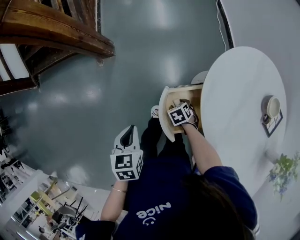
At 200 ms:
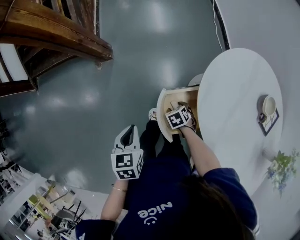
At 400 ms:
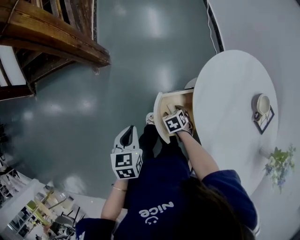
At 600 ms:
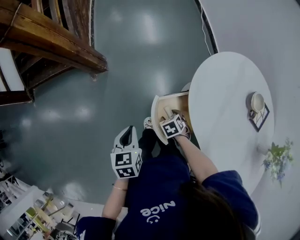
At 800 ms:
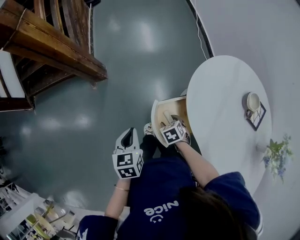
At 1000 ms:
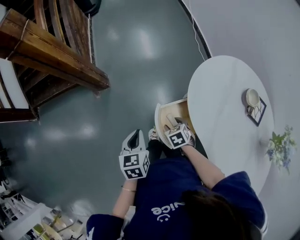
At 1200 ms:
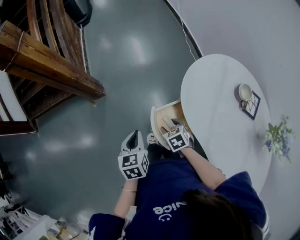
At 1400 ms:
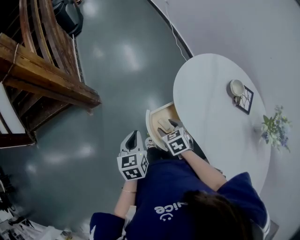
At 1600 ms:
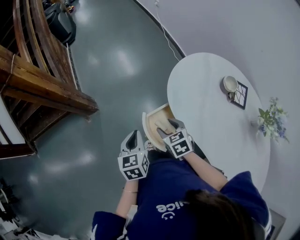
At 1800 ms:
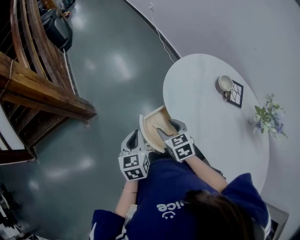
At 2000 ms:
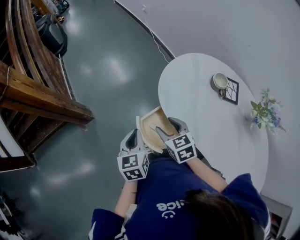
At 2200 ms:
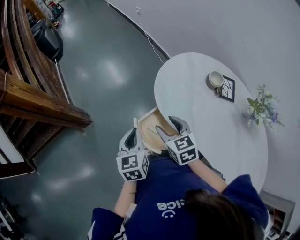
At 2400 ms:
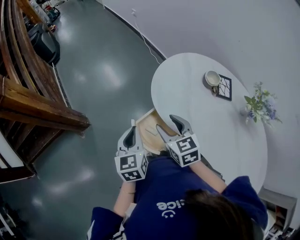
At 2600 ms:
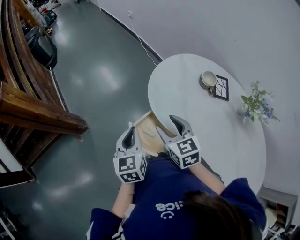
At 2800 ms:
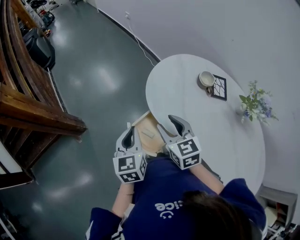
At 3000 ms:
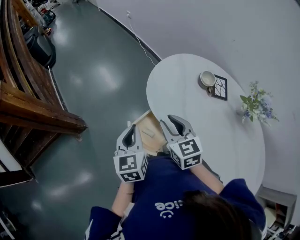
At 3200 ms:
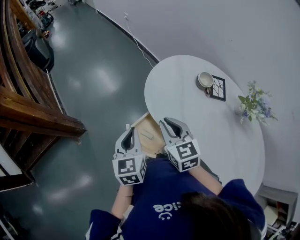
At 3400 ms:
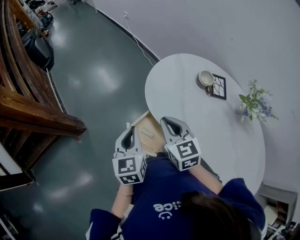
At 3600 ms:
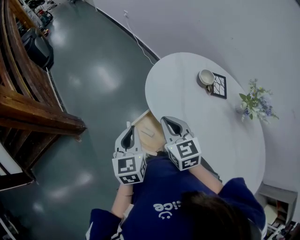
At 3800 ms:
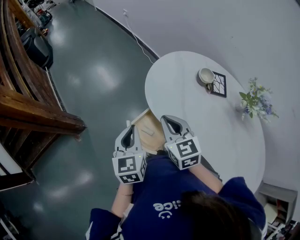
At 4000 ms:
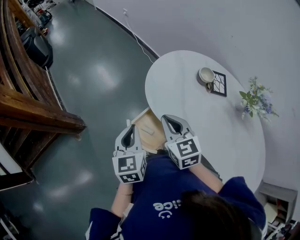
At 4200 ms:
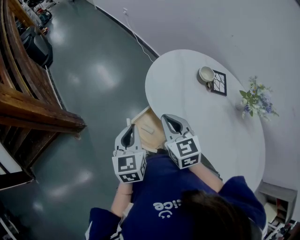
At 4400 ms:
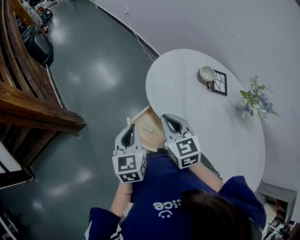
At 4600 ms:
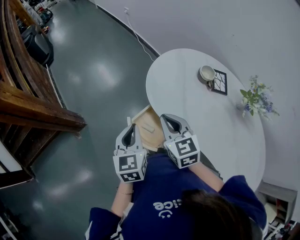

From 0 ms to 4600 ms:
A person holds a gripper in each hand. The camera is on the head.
From 0 ms to 1600 ms: The right gripper is displaced upward by about 25 cm, and rotates roughly 30 degrees. The left gripper moves roughly 10 cm, and rotates roughly 20 degrees.
From 1600 ms to 3000 ms: The left gripper is displaced to the right and upward by roughly 10 cm; the right gripper travels upward and to the right by roughly 15 cm, swivels some 30 degrees, and closes its fingers.
From 3000 ms to 4600 ms: The right gripper closes up.

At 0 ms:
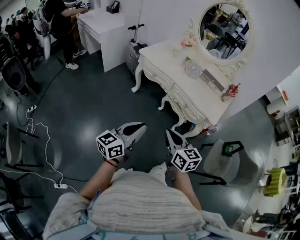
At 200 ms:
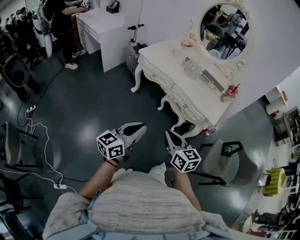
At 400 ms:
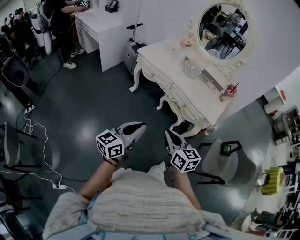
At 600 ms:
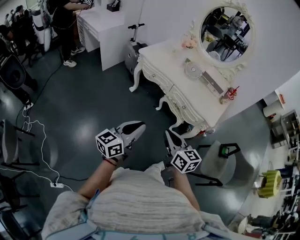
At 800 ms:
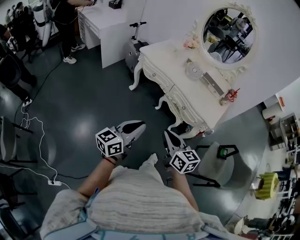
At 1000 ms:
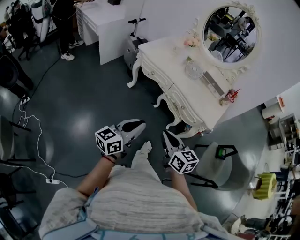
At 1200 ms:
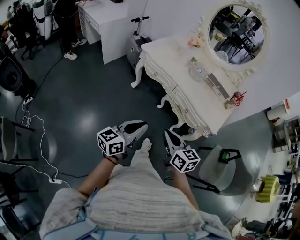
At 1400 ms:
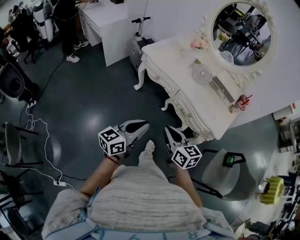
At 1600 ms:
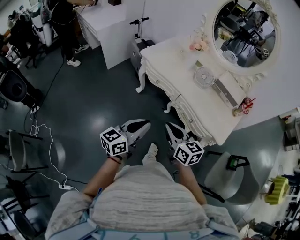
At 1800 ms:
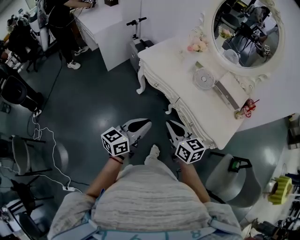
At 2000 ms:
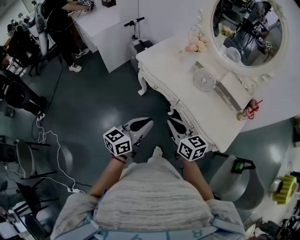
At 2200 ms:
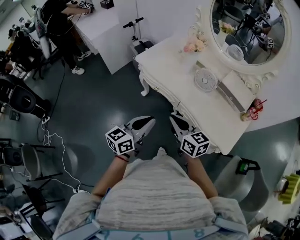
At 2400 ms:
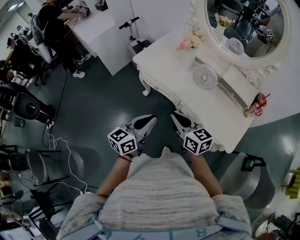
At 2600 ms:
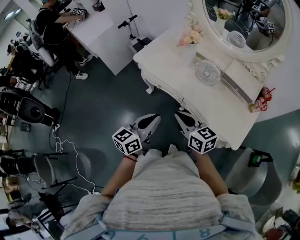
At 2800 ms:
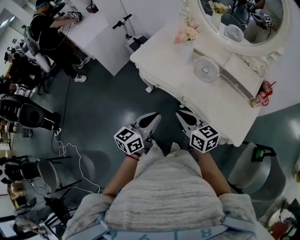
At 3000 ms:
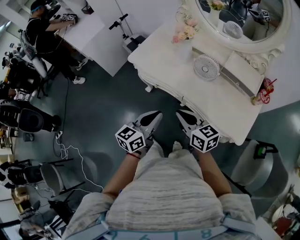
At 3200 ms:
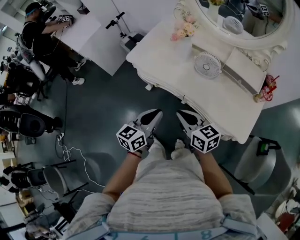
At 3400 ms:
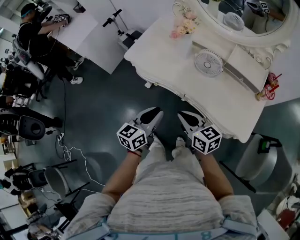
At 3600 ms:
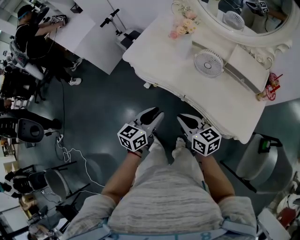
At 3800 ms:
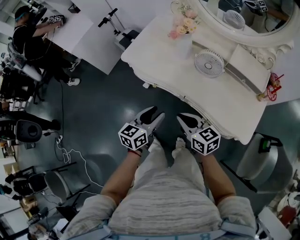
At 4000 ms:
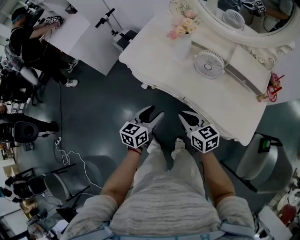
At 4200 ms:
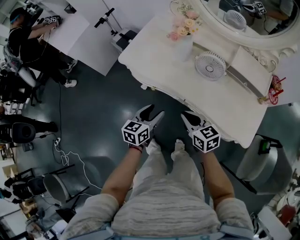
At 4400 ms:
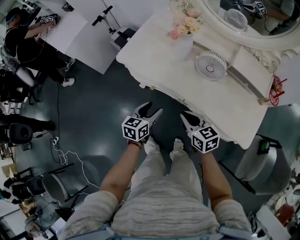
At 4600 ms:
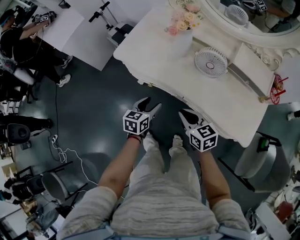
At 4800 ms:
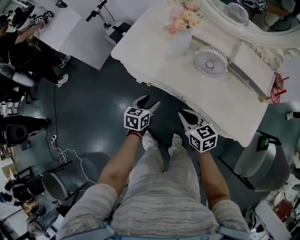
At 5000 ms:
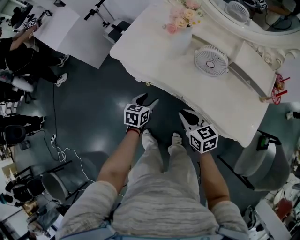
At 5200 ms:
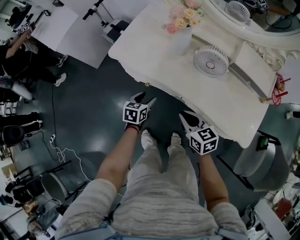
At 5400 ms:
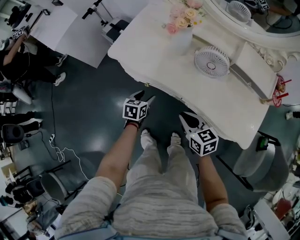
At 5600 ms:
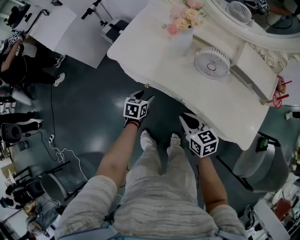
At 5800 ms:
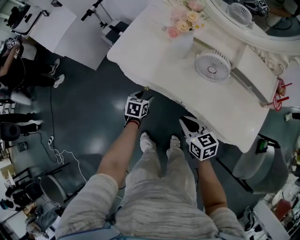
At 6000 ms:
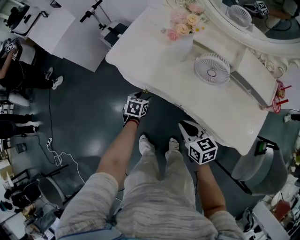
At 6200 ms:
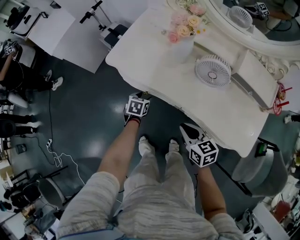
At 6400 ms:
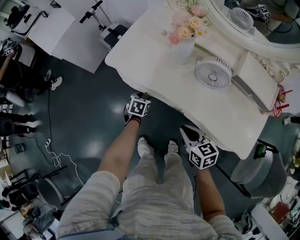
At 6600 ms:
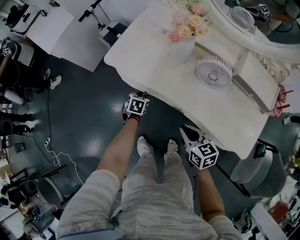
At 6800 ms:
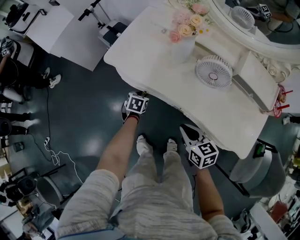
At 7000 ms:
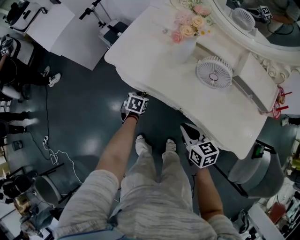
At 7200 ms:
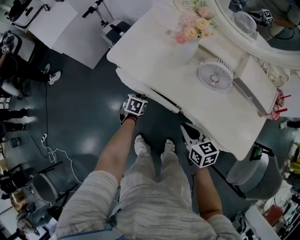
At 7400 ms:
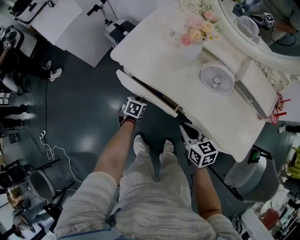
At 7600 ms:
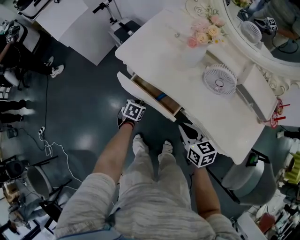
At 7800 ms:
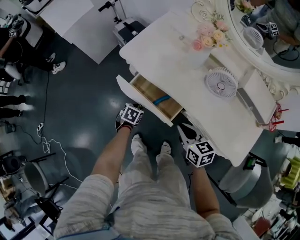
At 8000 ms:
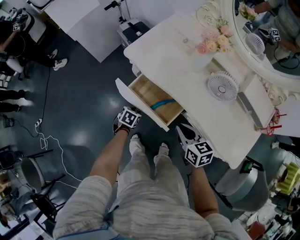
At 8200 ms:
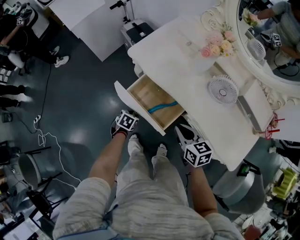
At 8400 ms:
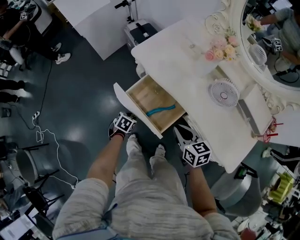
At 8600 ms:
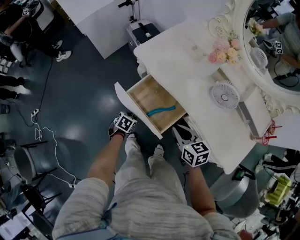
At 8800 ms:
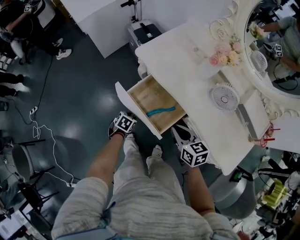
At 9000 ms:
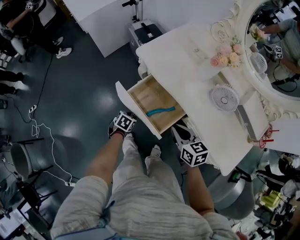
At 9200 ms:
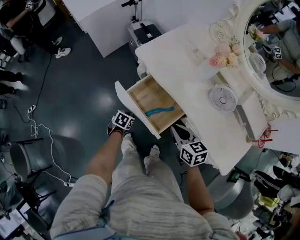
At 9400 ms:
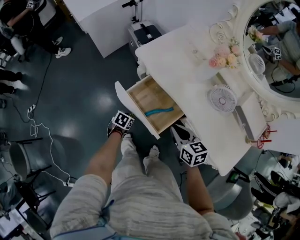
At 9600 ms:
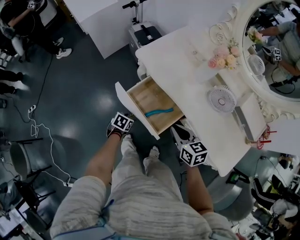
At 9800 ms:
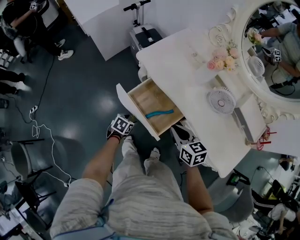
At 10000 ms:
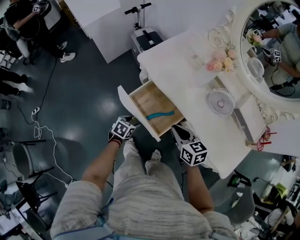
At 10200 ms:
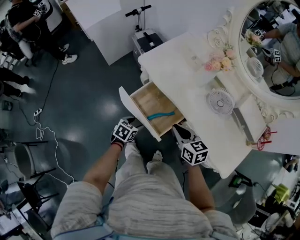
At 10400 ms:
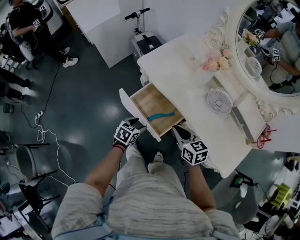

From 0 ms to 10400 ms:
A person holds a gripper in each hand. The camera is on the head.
From 0 ms to 1400 ms: Both grippers move forward, about 15 cm.
From 1400 ms to 3000 ms: Both grippers move forward, approximately 25 cm.
From 3000 ms to 4400 ms: The right gripper heads downward and forward, covering roughly 15 cm. Meanwhile the left gripper heads downward and forward, covering about 20 cm, and opens up.
From 4400 ms to 6000 ms: The left gripper heads downward and forward, covering approximately 20 cm, and changes its angle by approximately 30 degrees.
From 6000 ms to 7400 ms: The left gripper closes its fingers.
From 7400 ms to 9000 ms: The left gripper goes approximately 15 cm backward and to the left. The right gripper is displaced to the left by approximately 10 cm.
From 9000 ms to 10400 ms: The left gripper is displaced upward and to the right by about 15 cm, and opens up.

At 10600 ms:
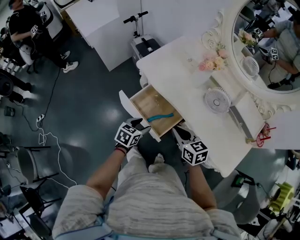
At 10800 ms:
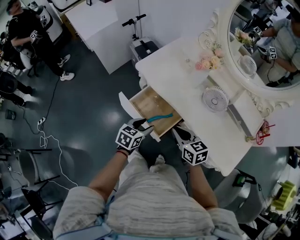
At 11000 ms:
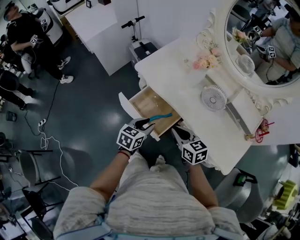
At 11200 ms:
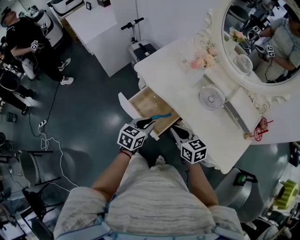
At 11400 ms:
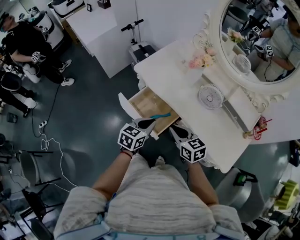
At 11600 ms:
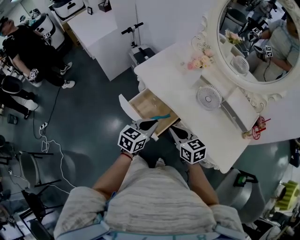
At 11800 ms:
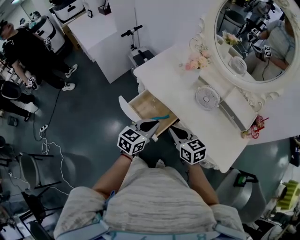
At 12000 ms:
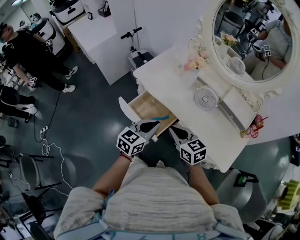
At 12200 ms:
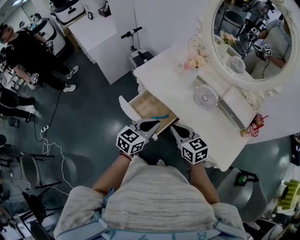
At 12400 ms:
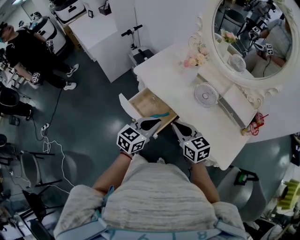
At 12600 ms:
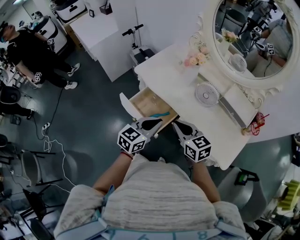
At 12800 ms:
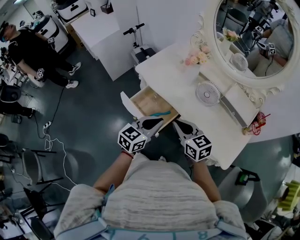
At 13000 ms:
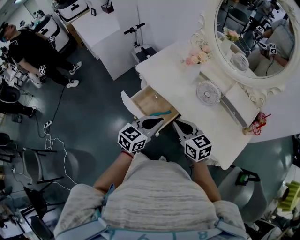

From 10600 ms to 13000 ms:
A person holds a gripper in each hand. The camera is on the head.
From 10600 ms to 11800 ms: The left gripper heads upward and to the right, covering approximately 20 cm, rotates some 20 degrees, and closes; the right gripper travels upward by roughly 5 cm.
From 11800 ms to 13000 ms: The grippers make only small movements.

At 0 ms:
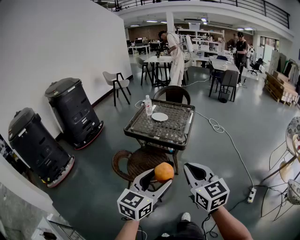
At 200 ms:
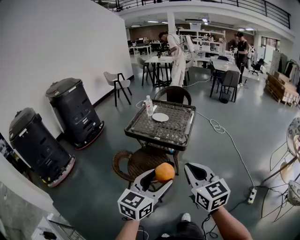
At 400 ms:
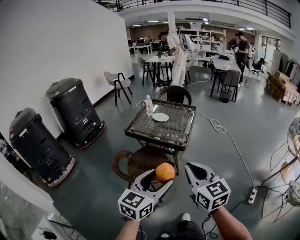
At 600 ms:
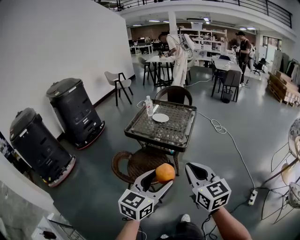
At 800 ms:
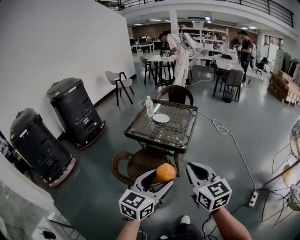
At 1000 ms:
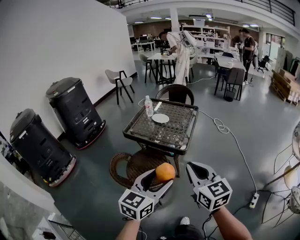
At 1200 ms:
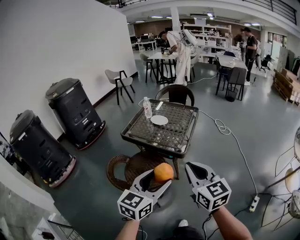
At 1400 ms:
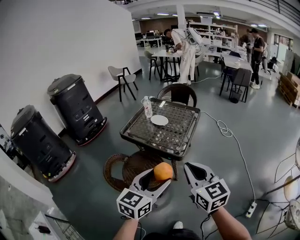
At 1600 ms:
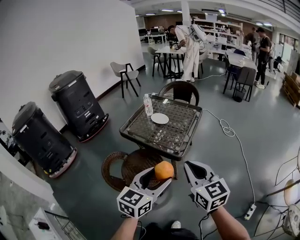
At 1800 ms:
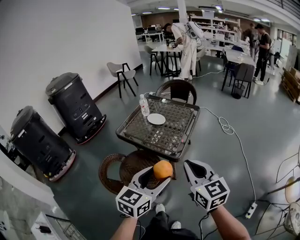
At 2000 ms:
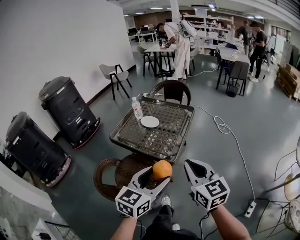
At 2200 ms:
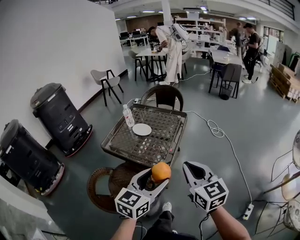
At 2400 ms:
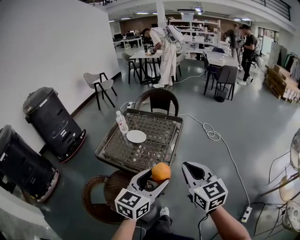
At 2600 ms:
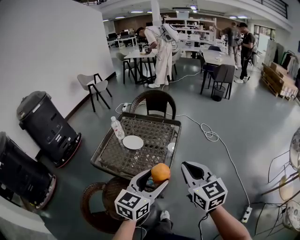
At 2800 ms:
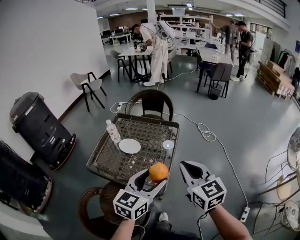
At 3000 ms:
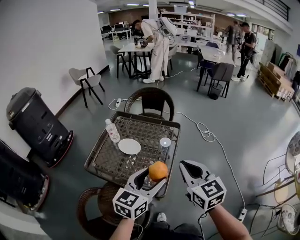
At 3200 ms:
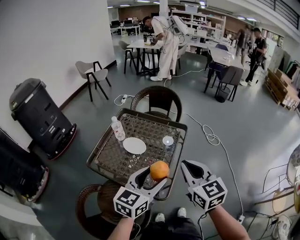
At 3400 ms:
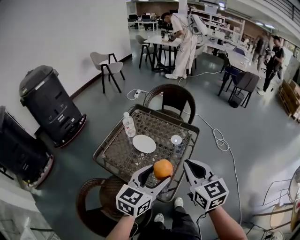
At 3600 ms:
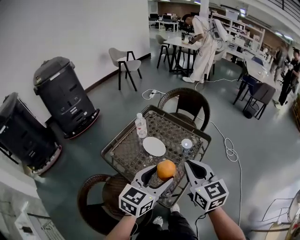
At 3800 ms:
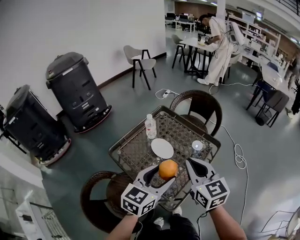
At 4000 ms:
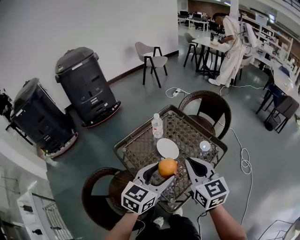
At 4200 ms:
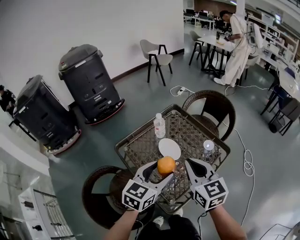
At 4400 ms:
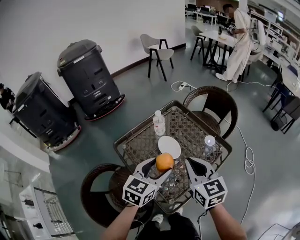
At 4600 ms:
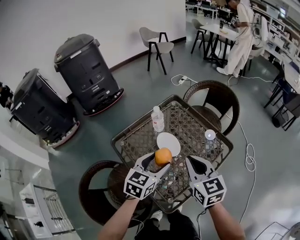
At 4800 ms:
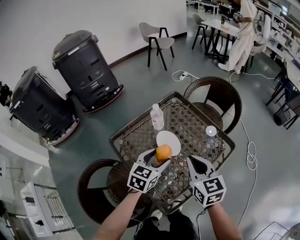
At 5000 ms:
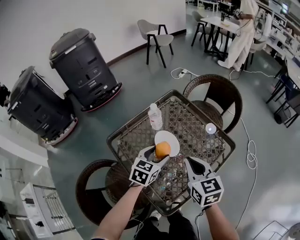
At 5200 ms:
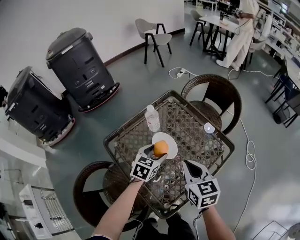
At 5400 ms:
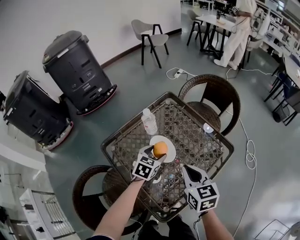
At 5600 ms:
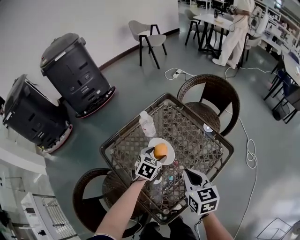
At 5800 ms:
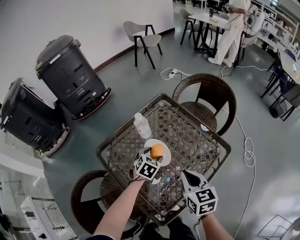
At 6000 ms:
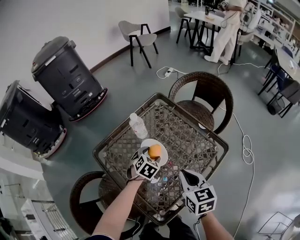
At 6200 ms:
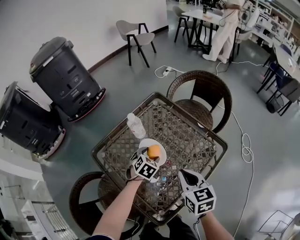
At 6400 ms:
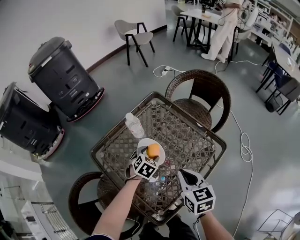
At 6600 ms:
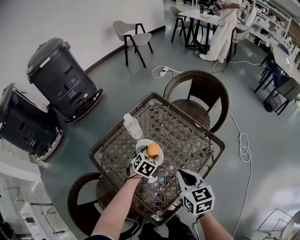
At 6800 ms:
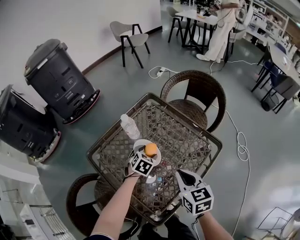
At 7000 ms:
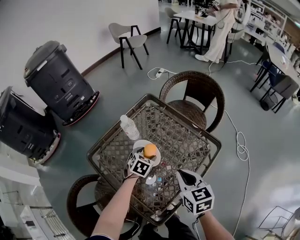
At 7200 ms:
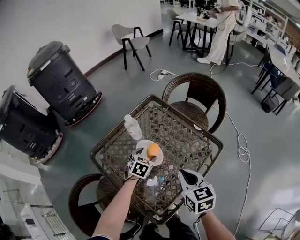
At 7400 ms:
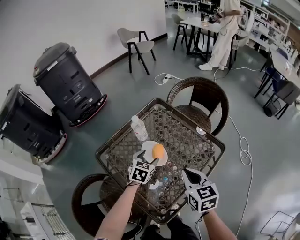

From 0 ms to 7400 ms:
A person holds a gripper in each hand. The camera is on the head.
From 0 ms to 1400 ms: The grippers both shift forward and to the right by some 15 cm.
From 1400 ms to 3000 ms: The two grippers go approximately 35 cm forward.
From 3000 ms to 4400 ms: The left gripper moves some 20 cm, and changes its angle by about 30 degrees; the right gripper changes place by some 25 cm, and changes its angle by some 30 degrees.
From 4400 ms to 6000 ms: The right gripper shifts approximately 15 cm downward. Meanwhile the left gripper goes approximately 30 cm downward and forward, and angles its fingers downward, by about 30 degrees.
From 6000 ms to 7400 ms: There are only small adjustments of the grippers.
